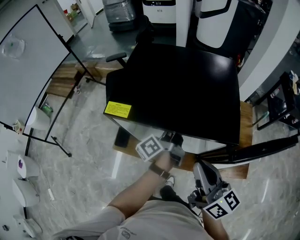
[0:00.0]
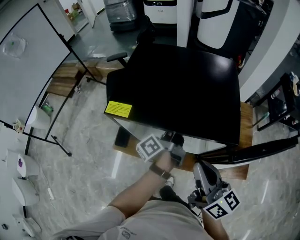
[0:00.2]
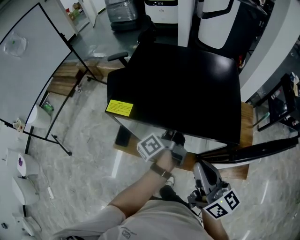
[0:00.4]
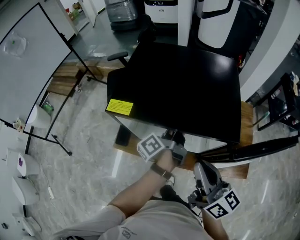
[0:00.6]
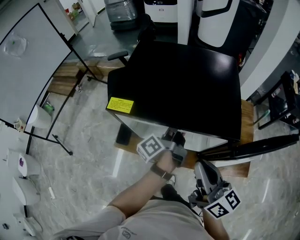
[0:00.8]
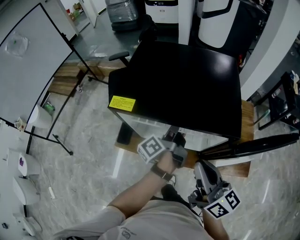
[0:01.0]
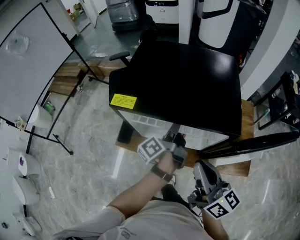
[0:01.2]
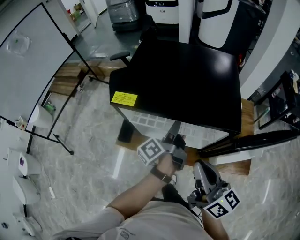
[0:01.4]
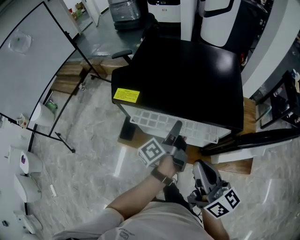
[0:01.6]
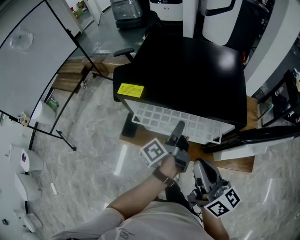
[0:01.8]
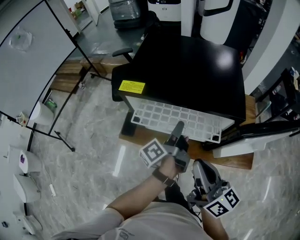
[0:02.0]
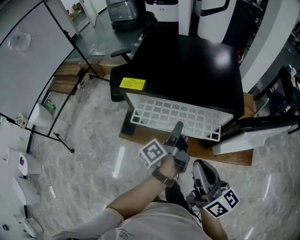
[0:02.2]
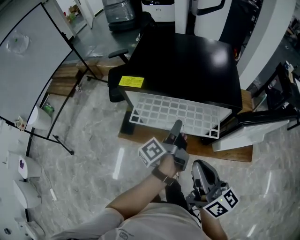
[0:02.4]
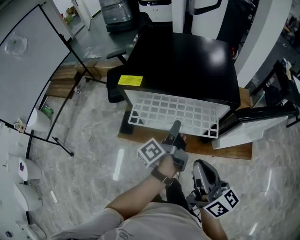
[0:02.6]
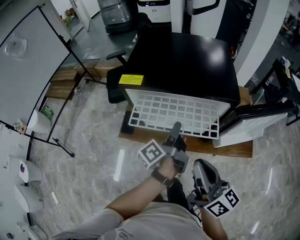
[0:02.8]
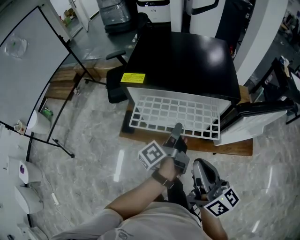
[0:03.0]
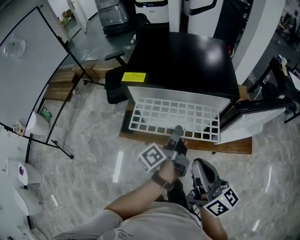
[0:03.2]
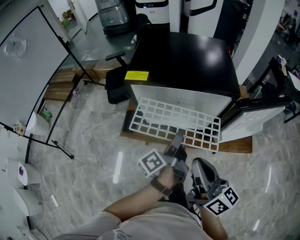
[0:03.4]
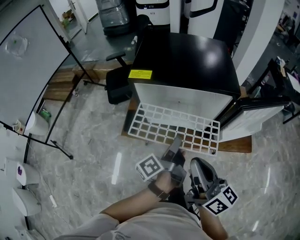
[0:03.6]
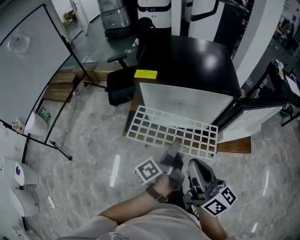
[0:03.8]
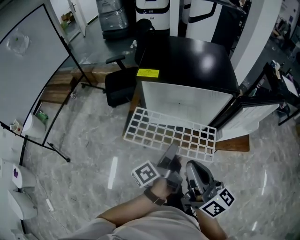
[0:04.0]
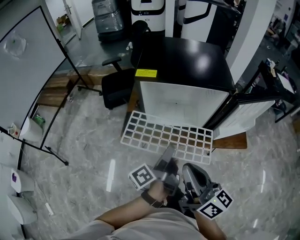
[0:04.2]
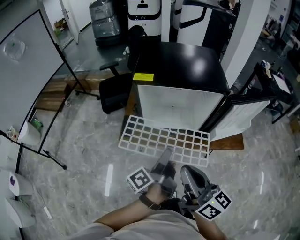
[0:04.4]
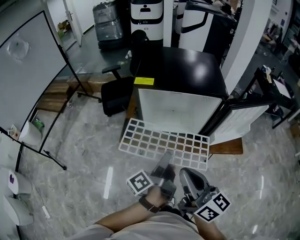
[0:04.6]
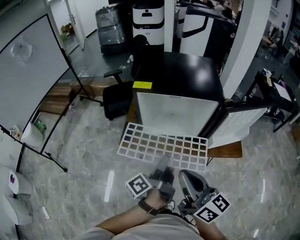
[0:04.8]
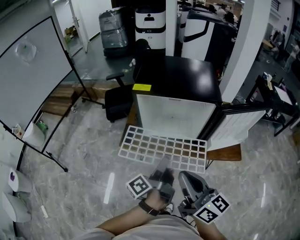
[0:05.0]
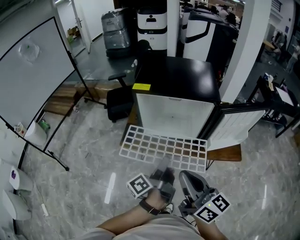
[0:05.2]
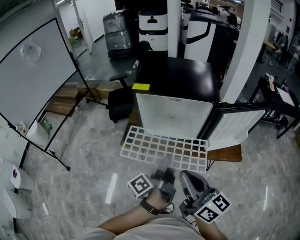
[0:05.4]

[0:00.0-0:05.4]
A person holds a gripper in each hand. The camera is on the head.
0:00.0 to 0:01.4: The grippers move only a little.
0:01.4 to 0:02.8: Both grippers travel together backward, approximately 10 cm.
0:02.8 to 0:04.0: The right gripper shifts approximately 10 cm to the left and backward, while the left gripper is displaced backward and to the left by approximately 15 cm.
0:04.0 to 0:05.4: Both grippers move backward, some 5 cm.

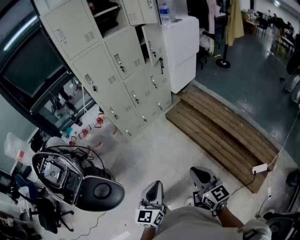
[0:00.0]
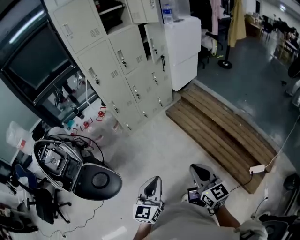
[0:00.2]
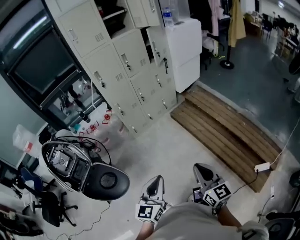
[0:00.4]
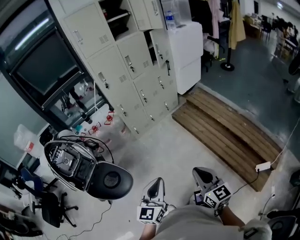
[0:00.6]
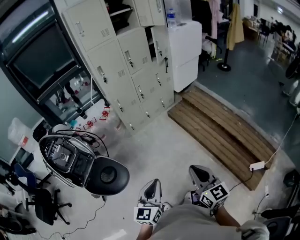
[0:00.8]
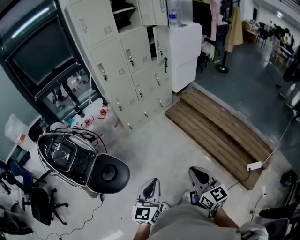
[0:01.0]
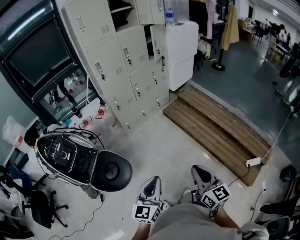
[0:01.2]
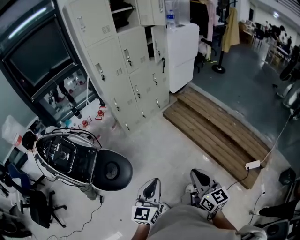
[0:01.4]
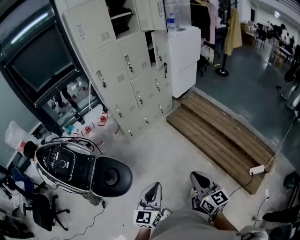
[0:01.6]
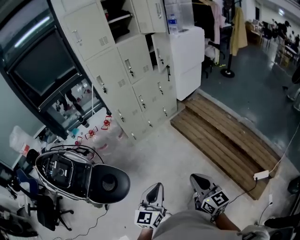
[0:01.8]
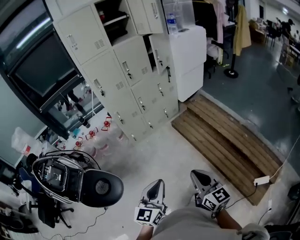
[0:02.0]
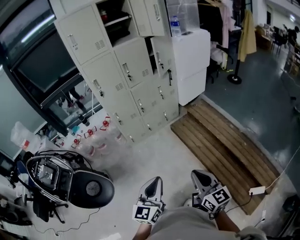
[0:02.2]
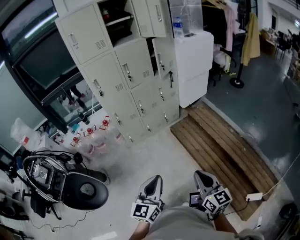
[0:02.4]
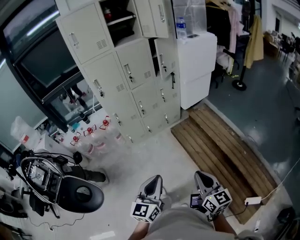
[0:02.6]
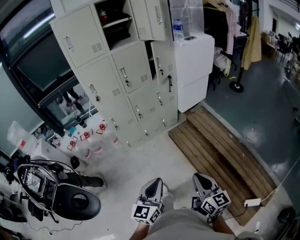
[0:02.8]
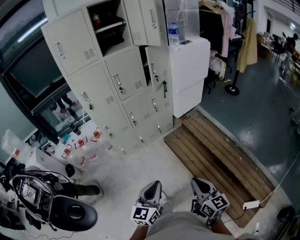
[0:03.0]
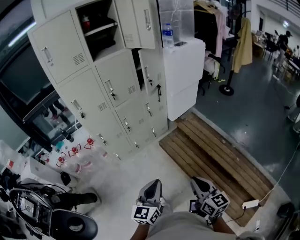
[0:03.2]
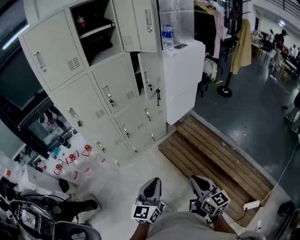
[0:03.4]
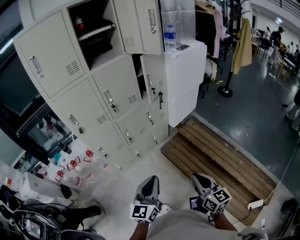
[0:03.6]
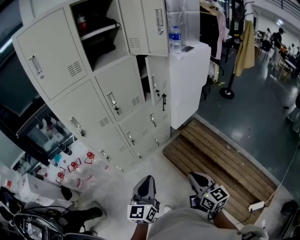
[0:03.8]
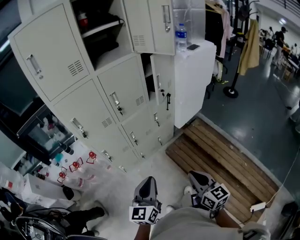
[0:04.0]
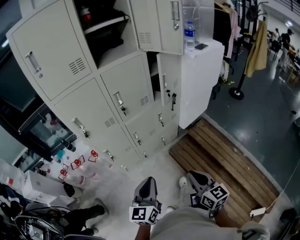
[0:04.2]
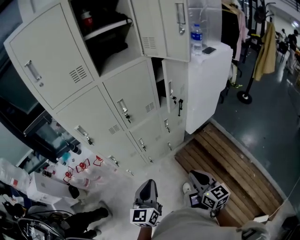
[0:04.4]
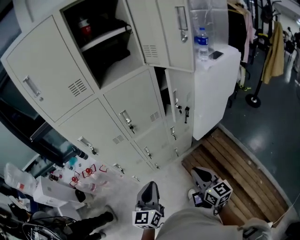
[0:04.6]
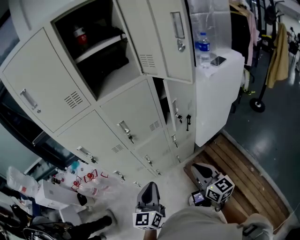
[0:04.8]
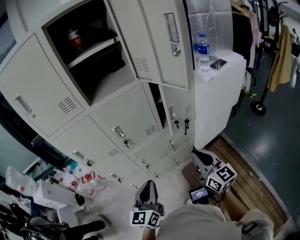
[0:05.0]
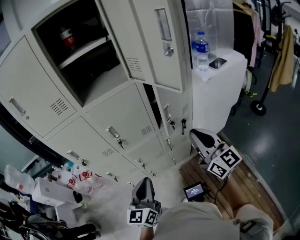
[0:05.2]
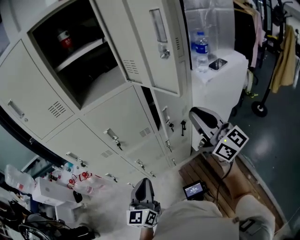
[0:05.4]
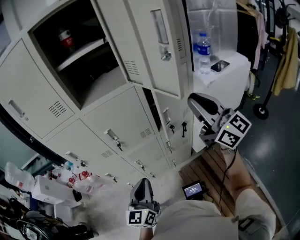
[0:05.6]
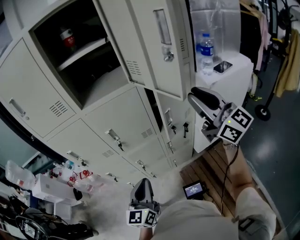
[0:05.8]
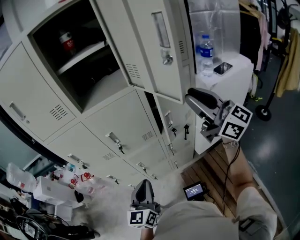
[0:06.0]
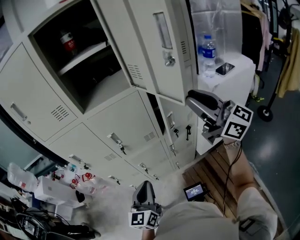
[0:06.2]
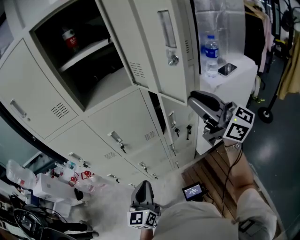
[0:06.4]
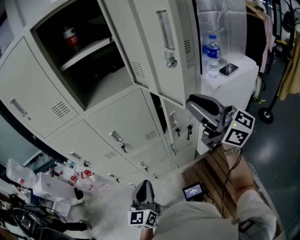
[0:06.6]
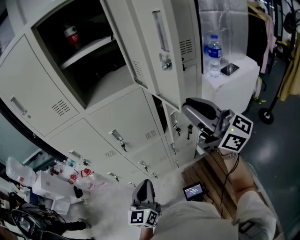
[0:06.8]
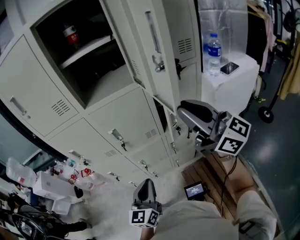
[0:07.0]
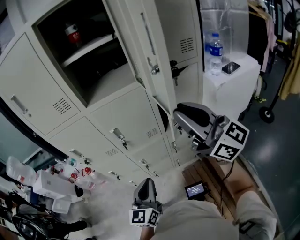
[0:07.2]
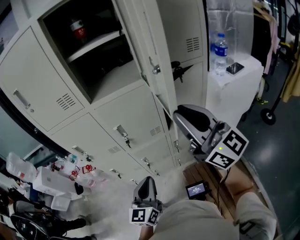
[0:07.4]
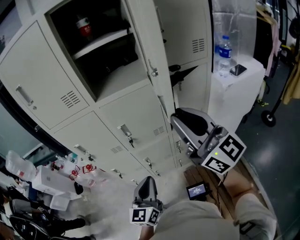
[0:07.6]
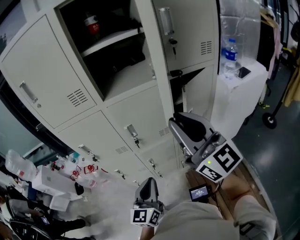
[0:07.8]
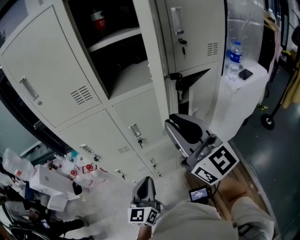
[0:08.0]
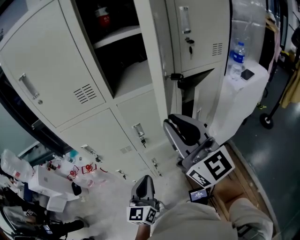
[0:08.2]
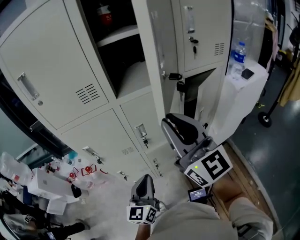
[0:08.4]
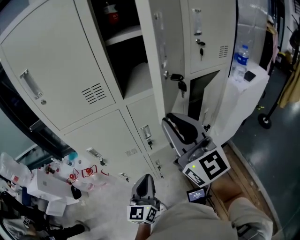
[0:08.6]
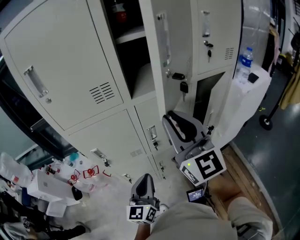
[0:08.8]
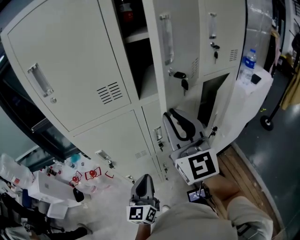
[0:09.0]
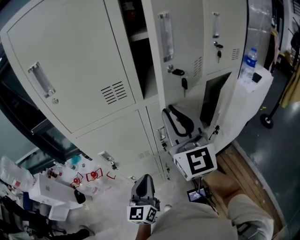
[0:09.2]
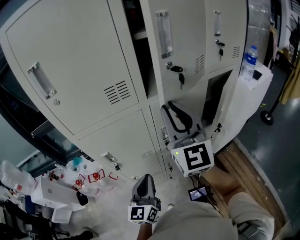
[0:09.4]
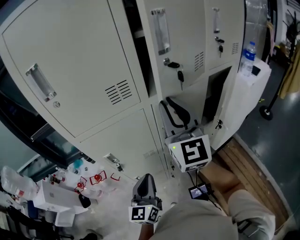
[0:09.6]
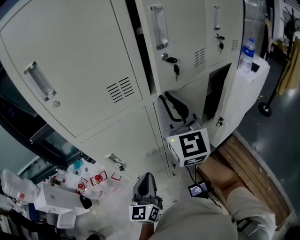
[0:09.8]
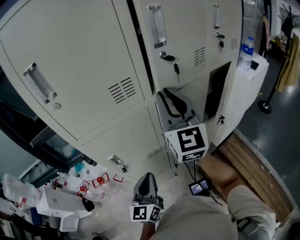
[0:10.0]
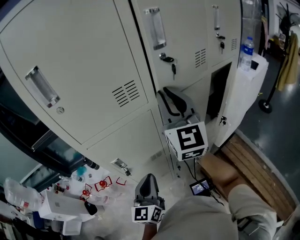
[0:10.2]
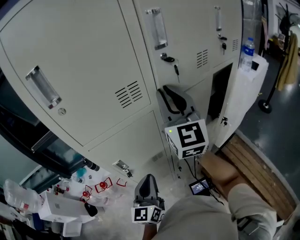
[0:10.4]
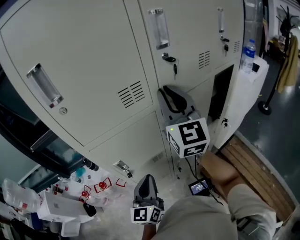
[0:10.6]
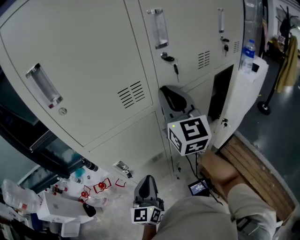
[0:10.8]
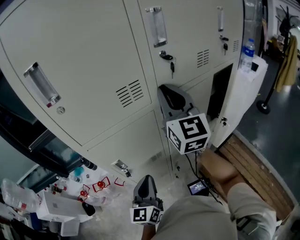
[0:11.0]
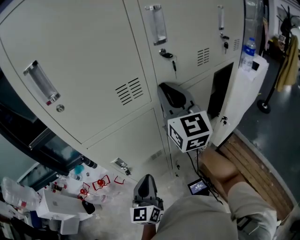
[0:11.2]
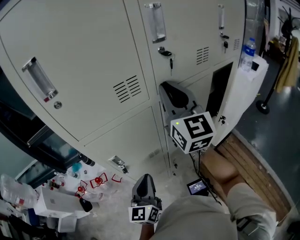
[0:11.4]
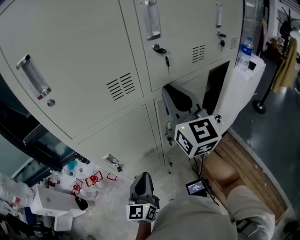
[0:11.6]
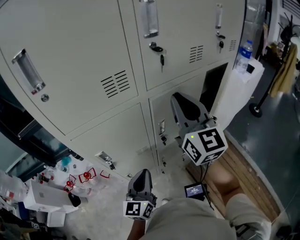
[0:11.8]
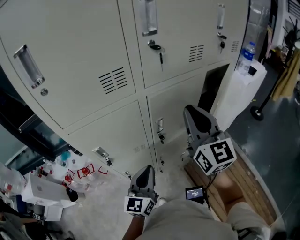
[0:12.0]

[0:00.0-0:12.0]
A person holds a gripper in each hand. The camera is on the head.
0:00.0 to 0:01.6: Both grippers move backward and to the left, approximately 10 cm.
0:01.6 to 0:03.0: The two grippers go approximately 30 cm forward and to the right.
0:03.0 to 0:04.4: The grippers both shift forward by approximately 35 cm.
0:04.4 to 0:06.0: The right gripper heads forward, upward and to the right, covering roughly 50 cm, and tips its fingers upward by about 30 degrees. Meanwhile the left gripper shifts roughly 20 cm forward and to the right.
0:06.0 to 0:07.6: The right gripper travels to the left by roughly 15 cm.
0:07.6 to 0:09.0: The grippers both shift to the left and forward by some 20 cm. The right gripper swivels some 30 degrees.
0:09.0 to 0:10.4: The left gripper goes some 10 cm to the left. The right gripper heads forward and to the left, covering roughly 10 cm.
0:10.4 to 0:12.0: The right gripper moves to the right, downward and backward, some 15 cm; the left gripper goes some 10 cm to the right.

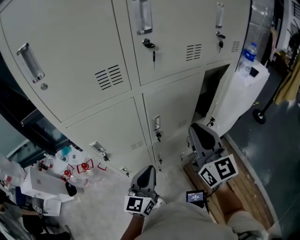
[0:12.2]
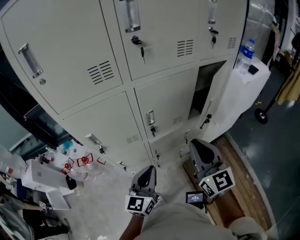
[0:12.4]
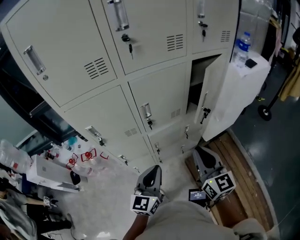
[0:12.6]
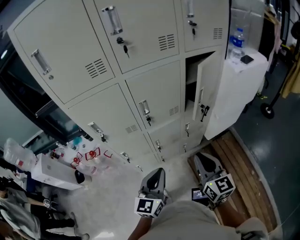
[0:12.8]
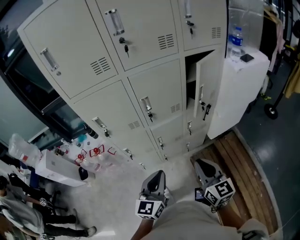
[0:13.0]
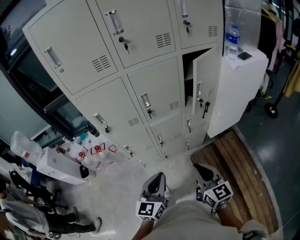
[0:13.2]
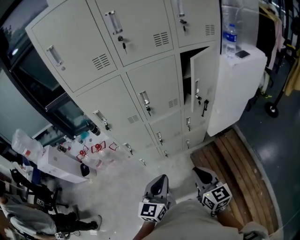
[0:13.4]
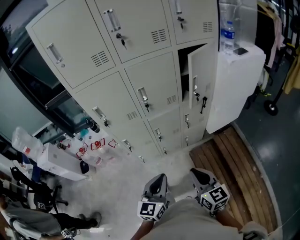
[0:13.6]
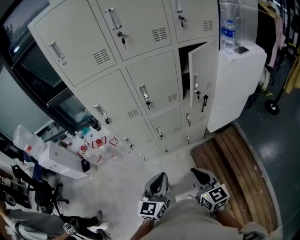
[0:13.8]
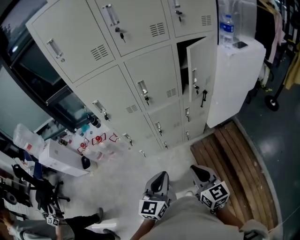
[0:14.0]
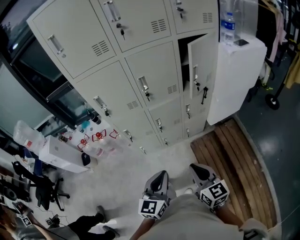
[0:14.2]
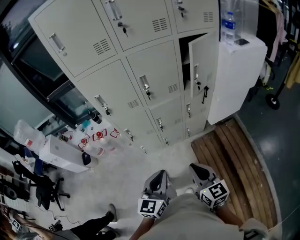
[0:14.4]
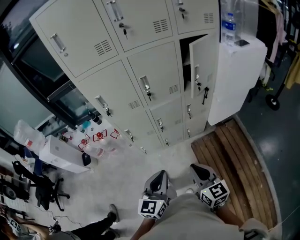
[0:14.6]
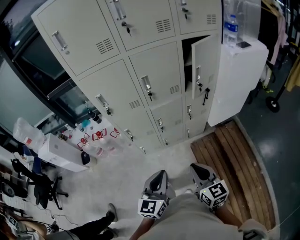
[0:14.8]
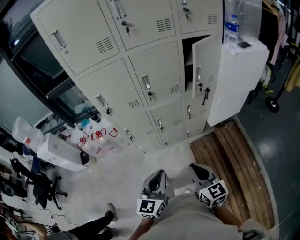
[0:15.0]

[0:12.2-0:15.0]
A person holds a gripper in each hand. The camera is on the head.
0:12.2 to 0:13.6: The left gripper is displaced backward and to the right by approximately 30 cm. Meanwhile the right gripper shifts some 35 cm backward and downward, and turns by roughly 30 degrees.
0:13.6 to 0:15.0: The grippers make only small movements.

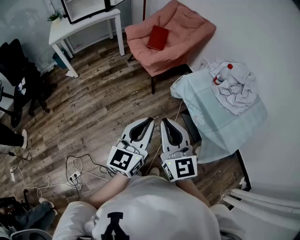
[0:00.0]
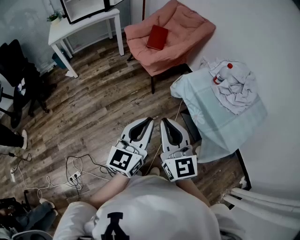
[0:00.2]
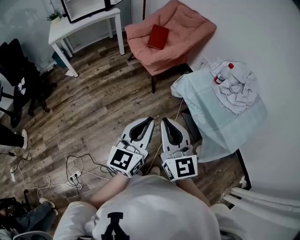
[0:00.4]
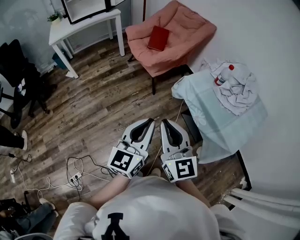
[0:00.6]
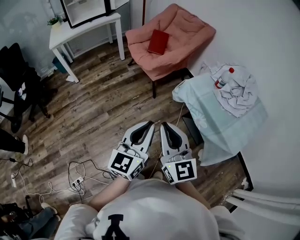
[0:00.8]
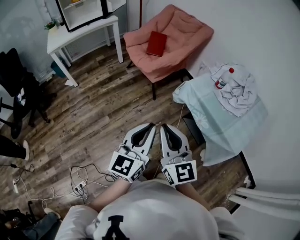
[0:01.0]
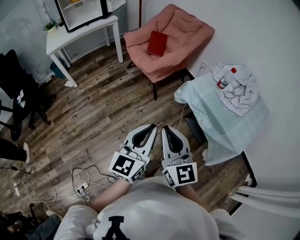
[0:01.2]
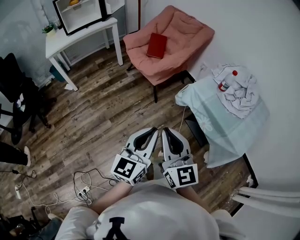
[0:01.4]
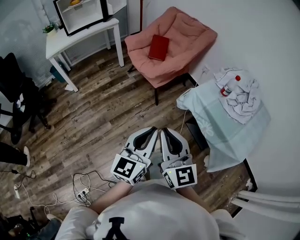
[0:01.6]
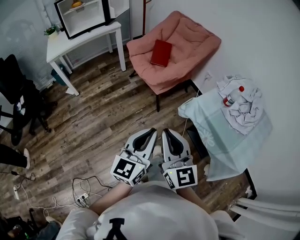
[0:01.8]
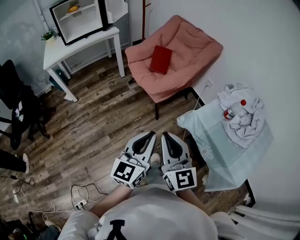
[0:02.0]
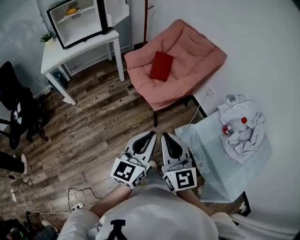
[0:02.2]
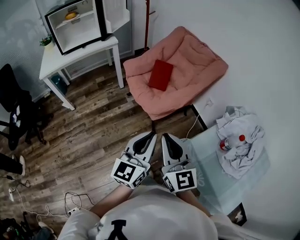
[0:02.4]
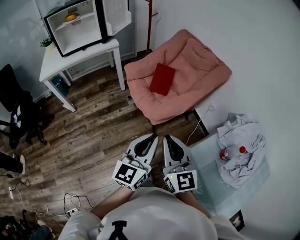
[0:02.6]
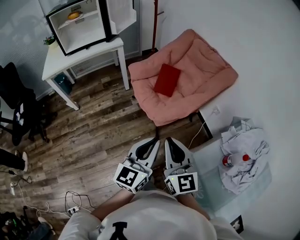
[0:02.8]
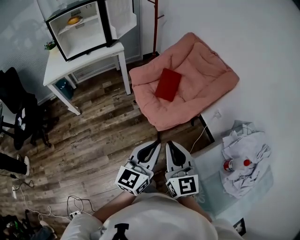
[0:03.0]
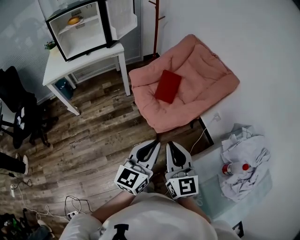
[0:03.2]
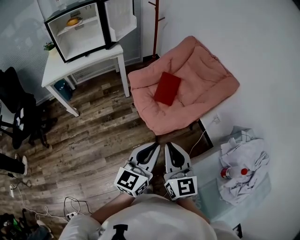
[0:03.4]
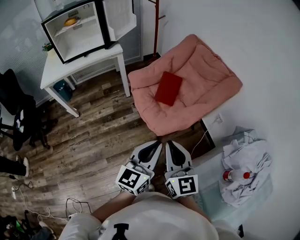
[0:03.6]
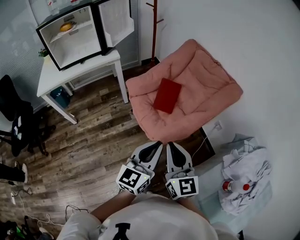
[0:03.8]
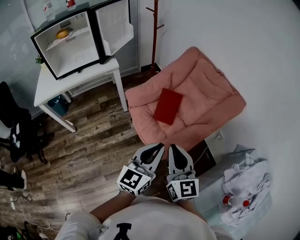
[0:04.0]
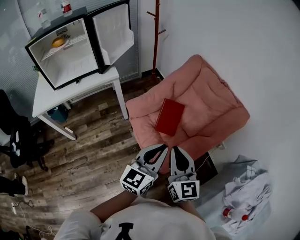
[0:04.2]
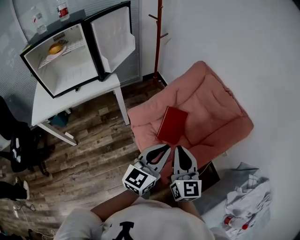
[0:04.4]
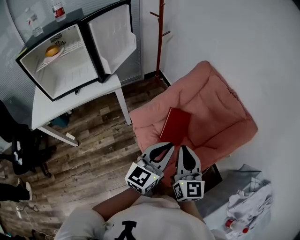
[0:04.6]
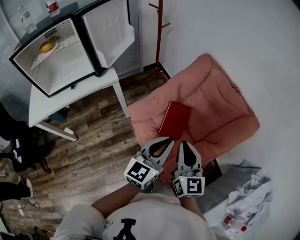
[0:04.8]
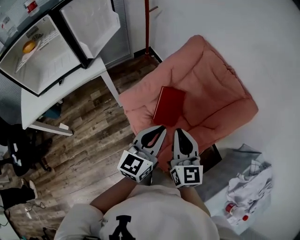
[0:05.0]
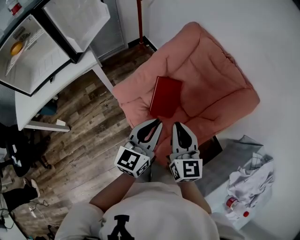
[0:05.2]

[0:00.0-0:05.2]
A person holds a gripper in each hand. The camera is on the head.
0:00.0 to 0:01.8: The grippers both shift forward and to the left by about 15 cm.
0:01.8 to 0:03.4: The grippers both shift forward by about 35 cm.
0:03.4 to 0:05.2: Both grippers travel together forward, about 35 cm.
